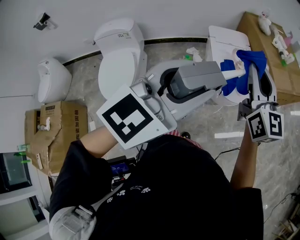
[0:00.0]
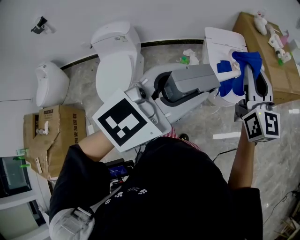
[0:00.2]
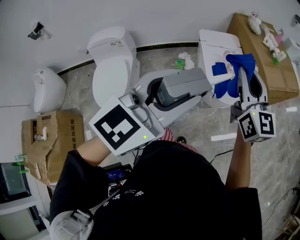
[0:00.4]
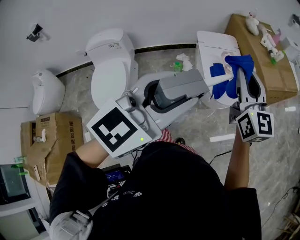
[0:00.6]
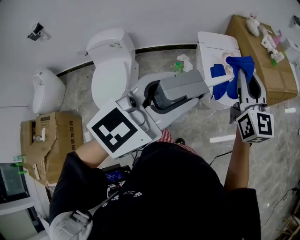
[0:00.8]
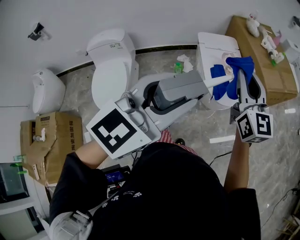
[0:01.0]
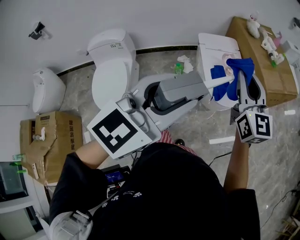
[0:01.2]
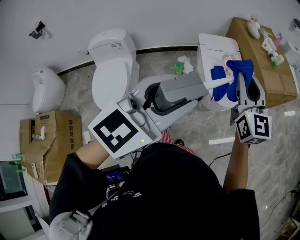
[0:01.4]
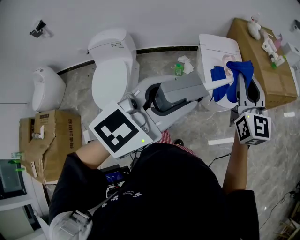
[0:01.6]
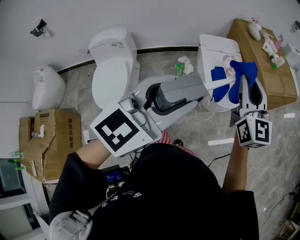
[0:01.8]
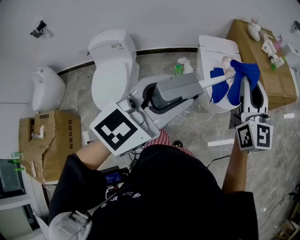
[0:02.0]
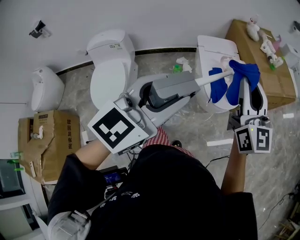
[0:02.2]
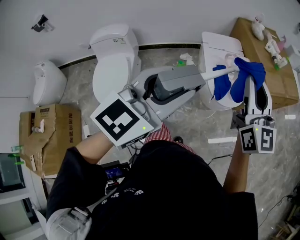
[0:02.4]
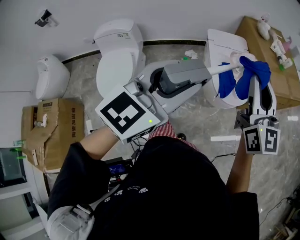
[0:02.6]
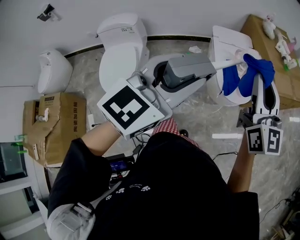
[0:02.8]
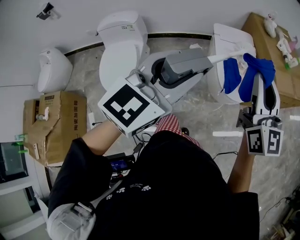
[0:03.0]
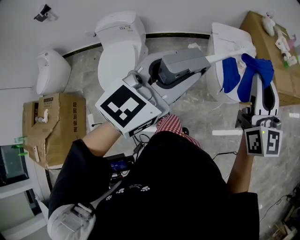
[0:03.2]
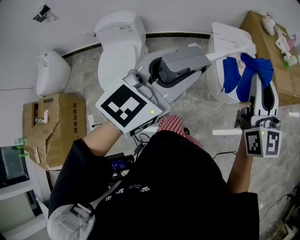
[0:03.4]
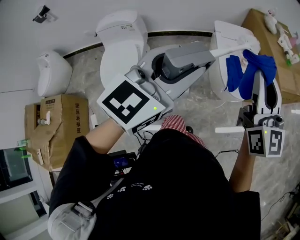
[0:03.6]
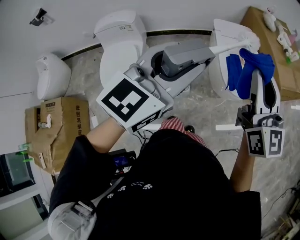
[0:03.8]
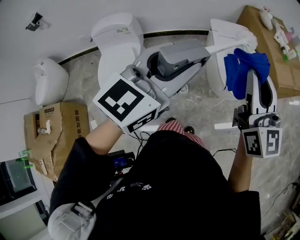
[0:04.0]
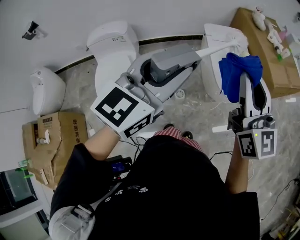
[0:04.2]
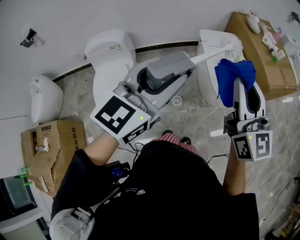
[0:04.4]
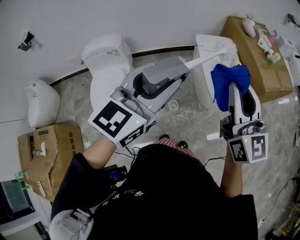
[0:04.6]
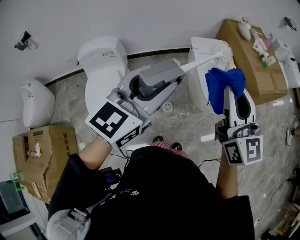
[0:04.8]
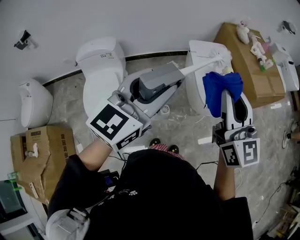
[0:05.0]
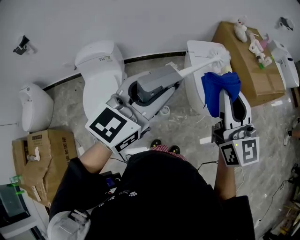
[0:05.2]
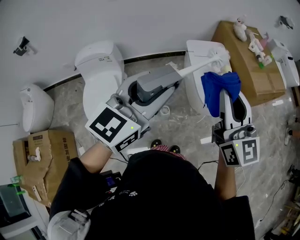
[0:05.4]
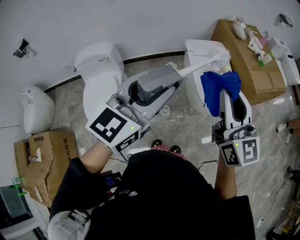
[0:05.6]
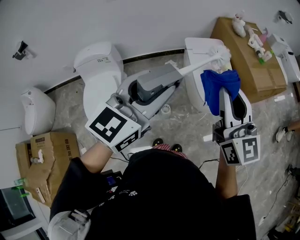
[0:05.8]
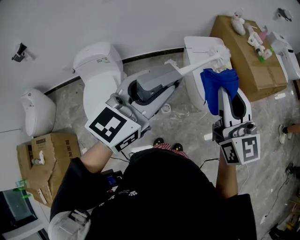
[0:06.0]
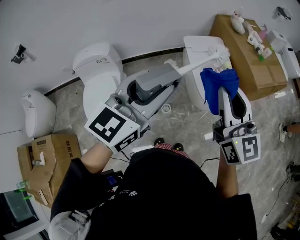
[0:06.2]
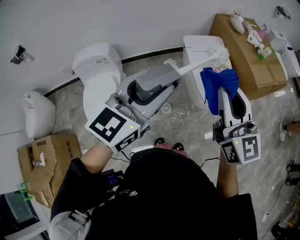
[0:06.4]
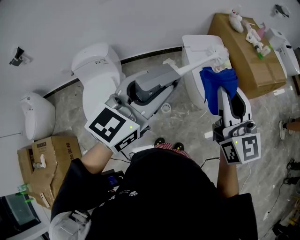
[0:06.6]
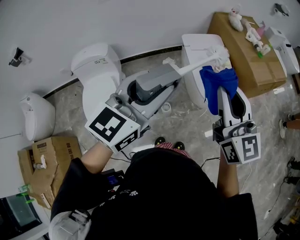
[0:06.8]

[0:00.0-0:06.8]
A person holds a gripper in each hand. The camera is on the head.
0:00.0 to 0:02.8: The grippers stay close to where they were, moving slightly.
0:02.8 to 0:04.0: Both grippers move to the left, some 10 cm.
0:04.0 to 0:06.8: The grippers stay close to where they were, moving slightly.

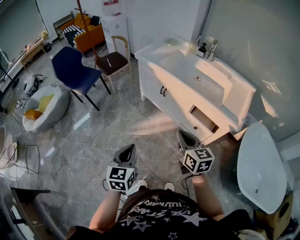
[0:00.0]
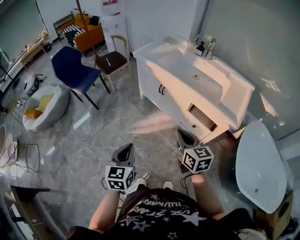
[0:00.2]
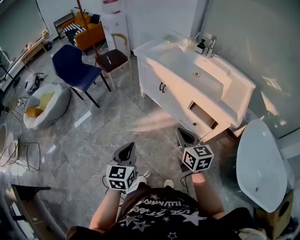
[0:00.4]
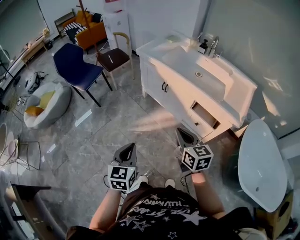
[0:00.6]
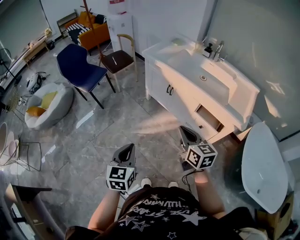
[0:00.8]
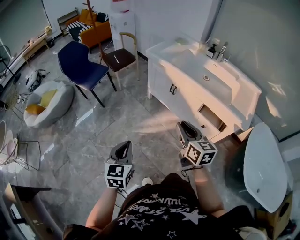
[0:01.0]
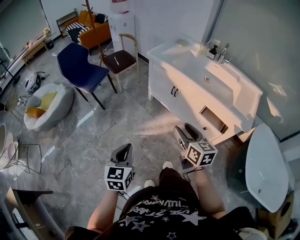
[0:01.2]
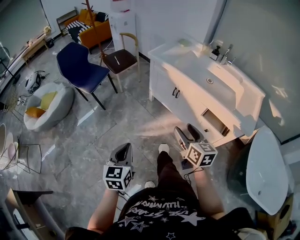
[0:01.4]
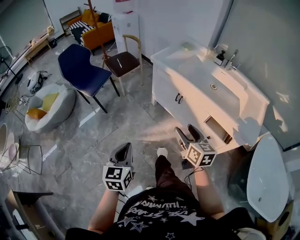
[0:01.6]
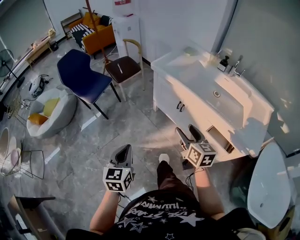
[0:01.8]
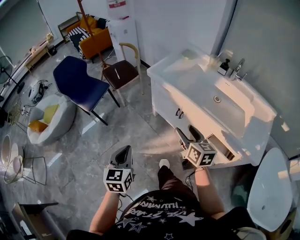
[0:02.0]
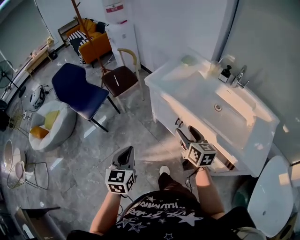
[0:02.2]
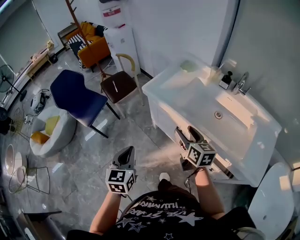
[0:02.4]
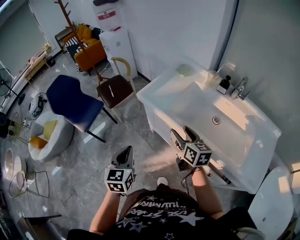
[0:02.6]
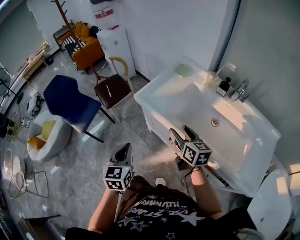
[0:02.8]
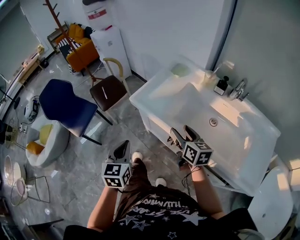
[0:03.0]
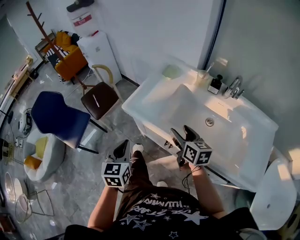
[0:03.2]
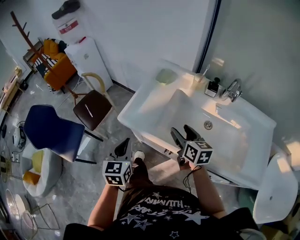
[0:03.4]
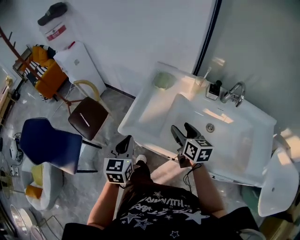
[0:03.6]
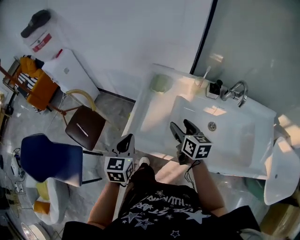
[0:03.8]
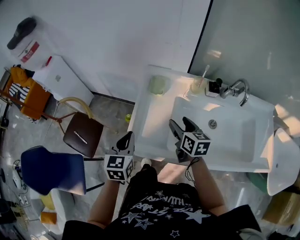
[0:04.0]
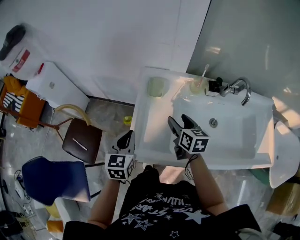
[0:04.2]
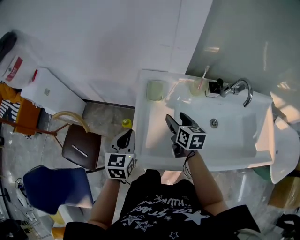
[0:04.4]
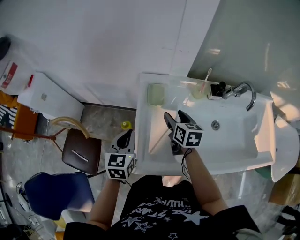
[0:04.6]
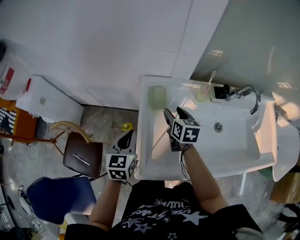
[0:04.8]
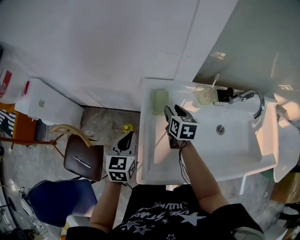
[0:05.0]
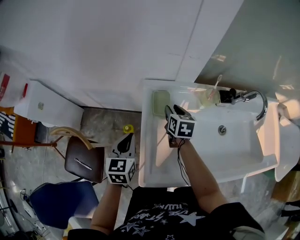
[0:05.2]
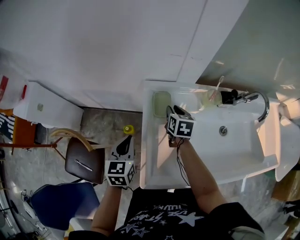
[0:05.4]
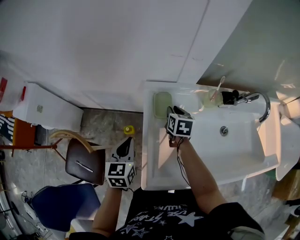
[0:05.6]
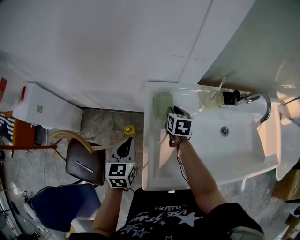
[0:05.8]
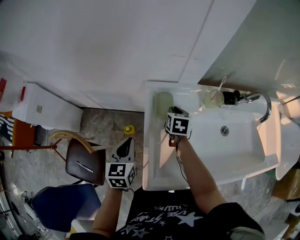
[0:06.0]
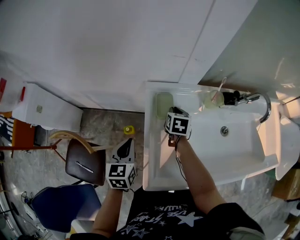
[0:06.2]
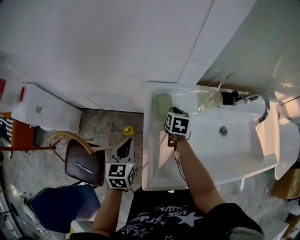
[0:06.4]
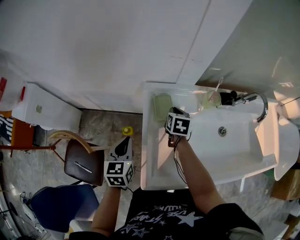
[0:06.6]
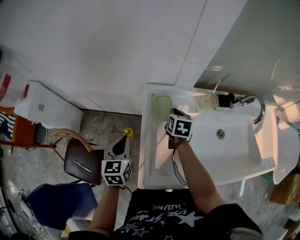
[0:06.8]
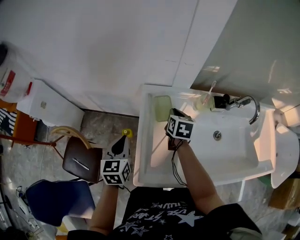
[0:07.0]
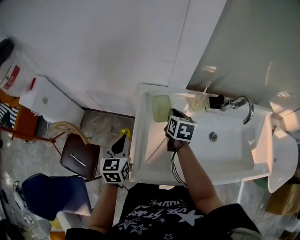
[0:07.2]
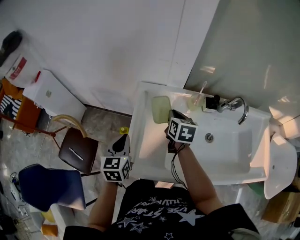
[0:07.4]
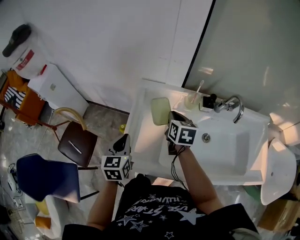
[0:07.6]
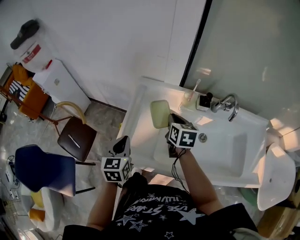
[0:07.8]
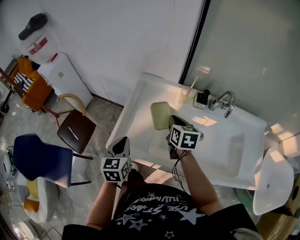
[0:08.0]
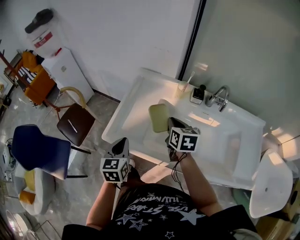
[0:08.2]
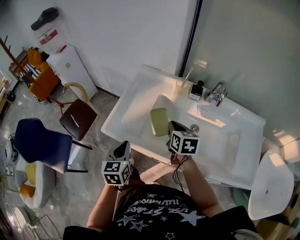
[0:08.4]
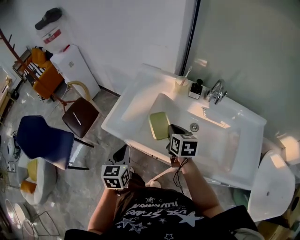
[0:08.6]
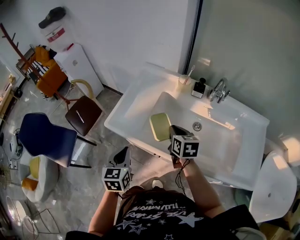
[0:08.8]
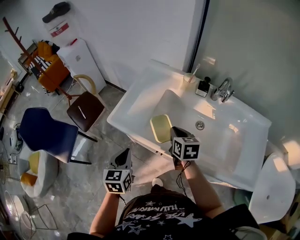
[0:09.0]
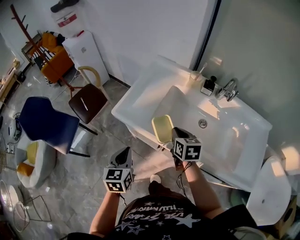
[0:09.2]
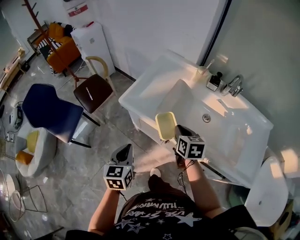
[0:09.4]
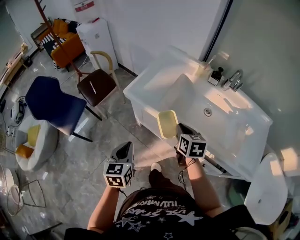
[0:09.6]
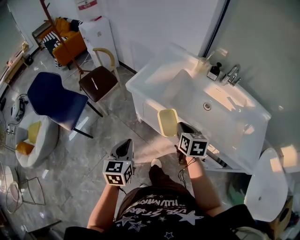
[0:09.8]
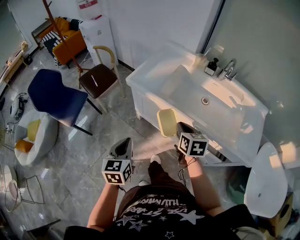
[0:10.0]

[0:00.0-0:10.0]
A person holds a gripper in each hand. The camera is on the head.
0:00.0 to 0:01.4: The right gripper is displaced to the left and forward by about 10 cm, and opens up. Meanwhile the left gripper goes about 10 cm to the left.
0:01.4 to 0:02.8: Both grippers are carried forward, approximately 40 cm.
0:02.8 to 0:04.2: The right gripper shifts by roughly 30 cm, and changes its angle by about 40 degrees, while the left gripper changes place by roughly 40 cm, and swivels roughly 40 degrees.
0:04.2 to 0:05.8: The left gripper moves forward, to the left and downward, some 15 cm, while the right gripper is displaced forward and downward by roughly 20 cm, changes its angle by roughly 20 degrees, and closes.
0:05.8 to 0:07.2: The left gripper goes some 5 cm upward. The right gripper travels upward by some 10 cm.
0:07.2 to 0:08.6: Both grippers move backward and to the right, roughly 30 cm. The right gripper rotates approximately 30 degrees.
0:08.6 to 0:10.0: Both grippers move backward, about 25 cm.

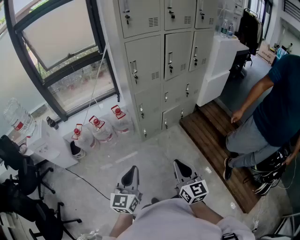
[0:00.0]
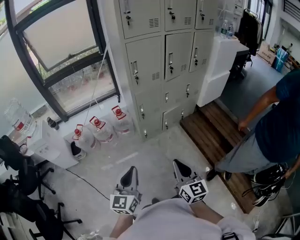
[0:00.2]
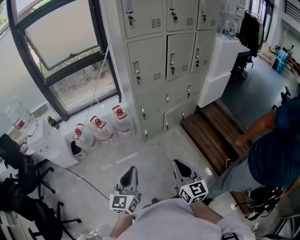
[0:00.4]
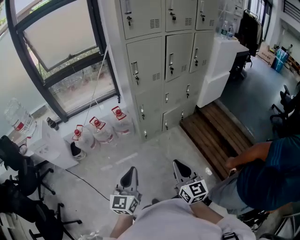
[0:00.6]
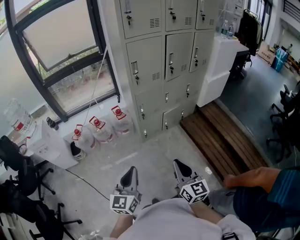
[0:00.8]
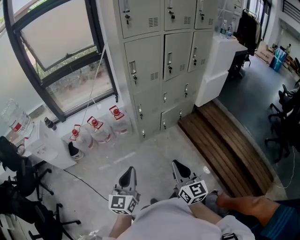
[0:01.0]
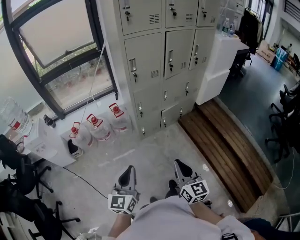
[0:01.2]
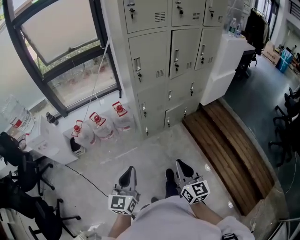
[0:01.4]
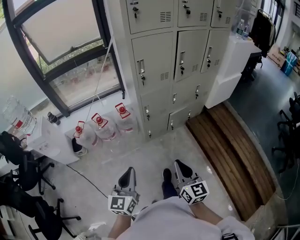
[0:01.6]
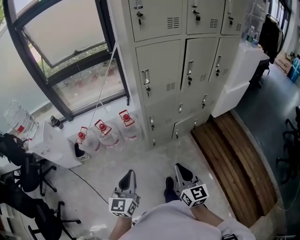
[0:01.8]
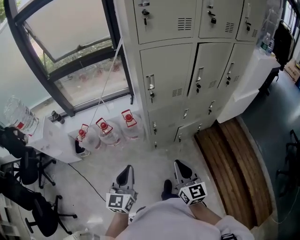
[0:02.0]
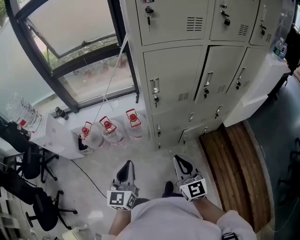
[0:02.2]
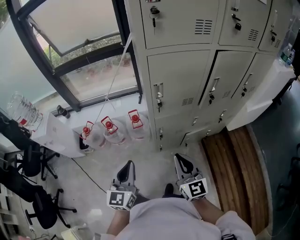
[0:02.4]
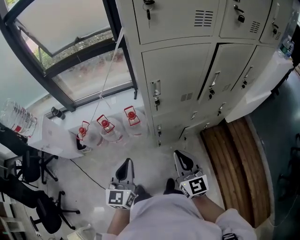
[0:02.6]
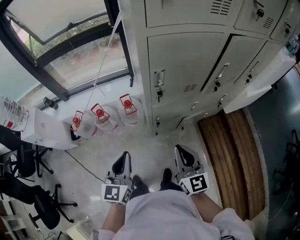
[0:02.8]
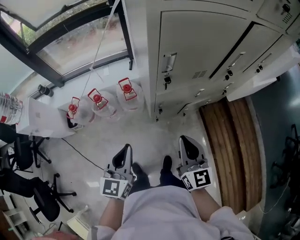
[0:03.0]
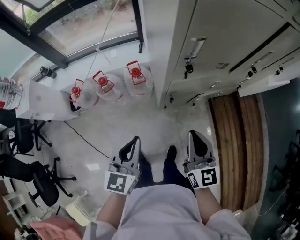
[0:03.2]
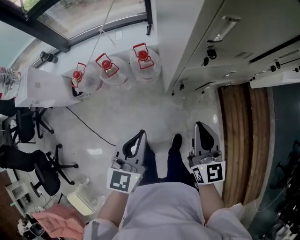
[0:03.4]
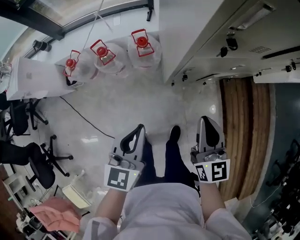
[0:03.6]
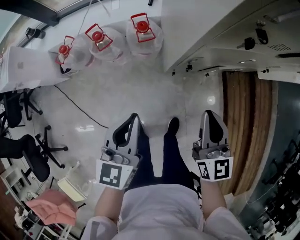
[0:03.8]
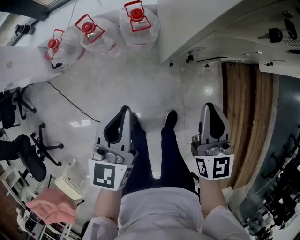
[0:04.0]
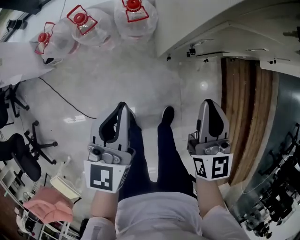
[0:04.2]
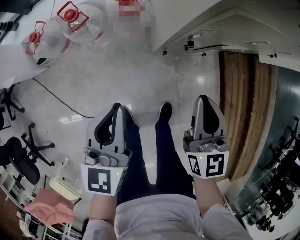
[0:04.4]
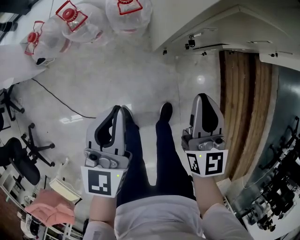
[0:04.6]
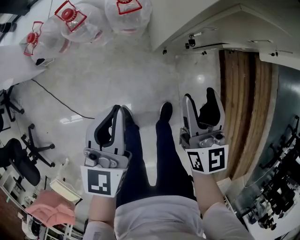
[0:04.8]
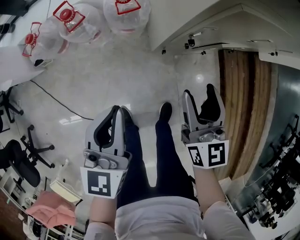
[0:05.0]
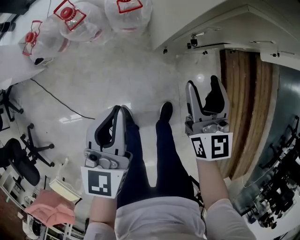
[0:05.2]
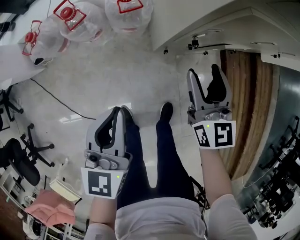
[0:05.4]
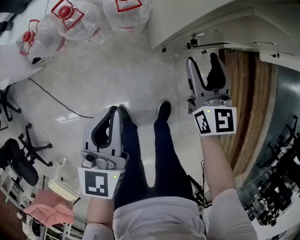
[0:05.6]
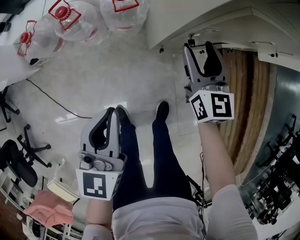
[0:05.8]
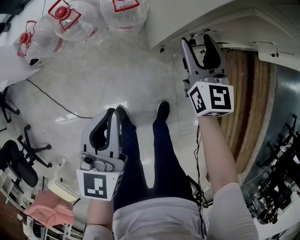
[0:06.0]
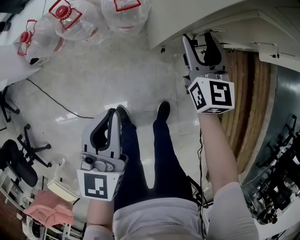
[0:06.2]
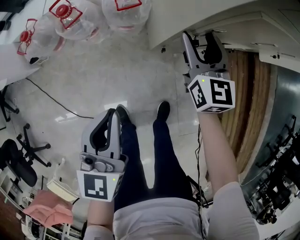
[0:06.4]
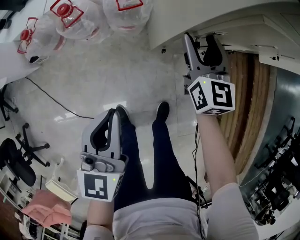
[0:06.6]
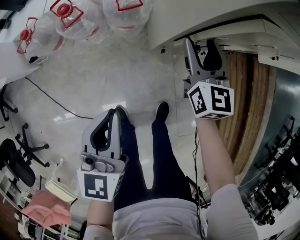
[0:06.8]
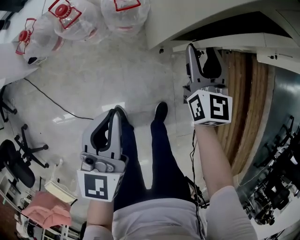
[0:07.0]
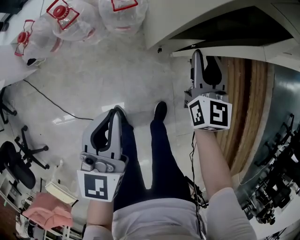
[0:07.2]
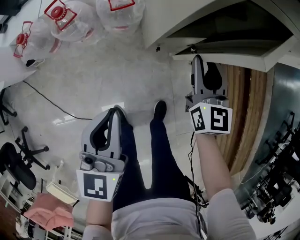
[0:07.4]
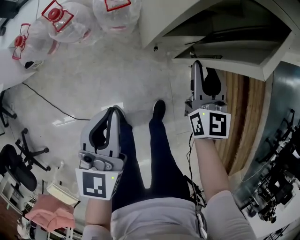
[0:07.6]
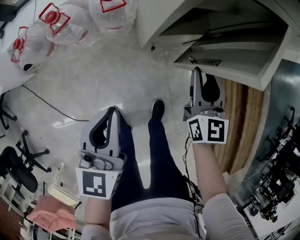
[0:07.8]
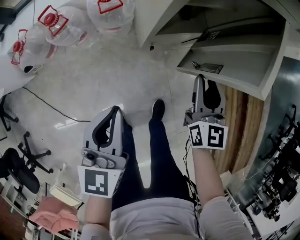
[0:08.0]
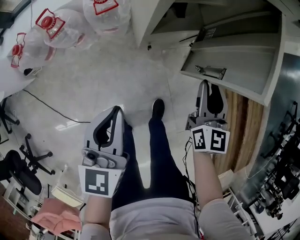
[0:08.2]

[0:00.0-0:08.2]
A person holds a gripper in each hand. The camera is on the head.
0:00.0 to 0:01.6: The grippers both shift forward by about 10 cm.
0:01.6 to 0:03.2: The two grippers go approximately 35 cm forward.
0:03.2 to 0:05.0: The grippers both shift downward by approximately 25 cm. The right gripper opens.
0:05.0 to 0:06.6: The right gripper travels forward by about 15 cm.
0:06.6 to 0:08.2: The left gripper shifts roughly 5 cm to the right. Meanwhile the right gripper is displaced to the right and backward by about 20 cm, and closes.
